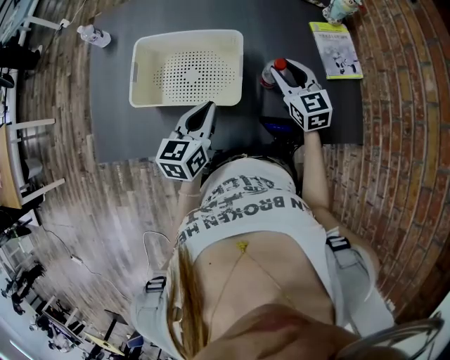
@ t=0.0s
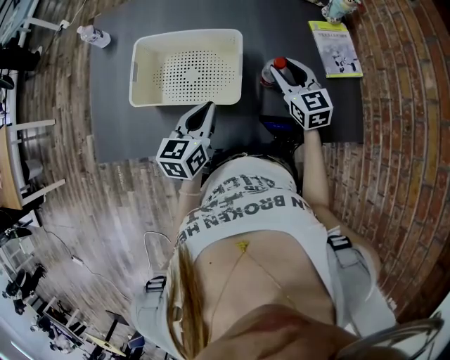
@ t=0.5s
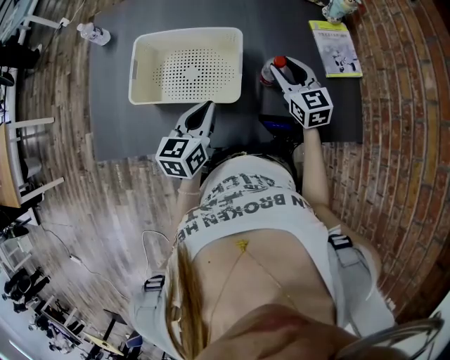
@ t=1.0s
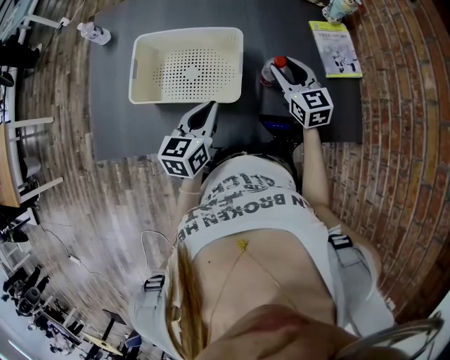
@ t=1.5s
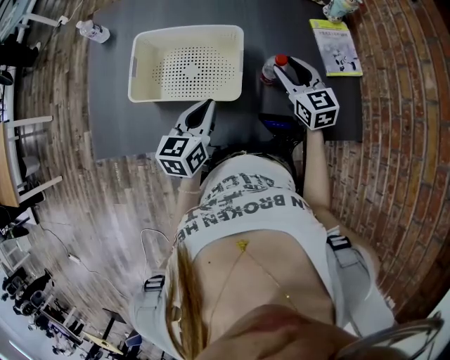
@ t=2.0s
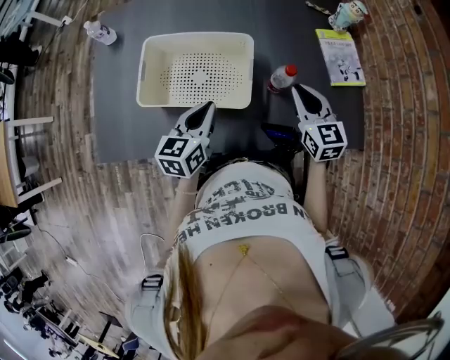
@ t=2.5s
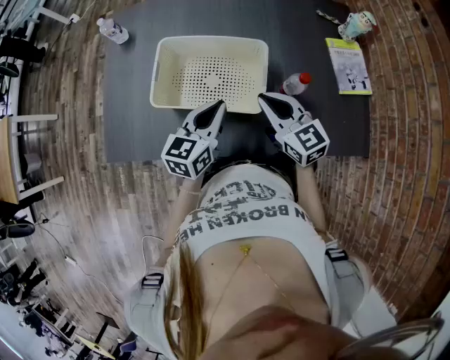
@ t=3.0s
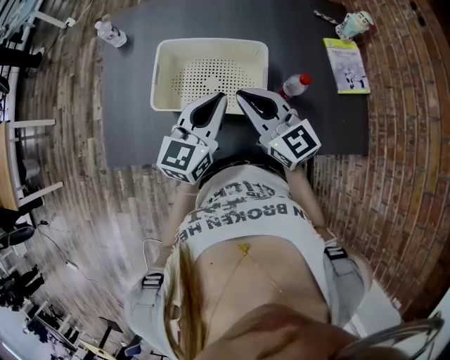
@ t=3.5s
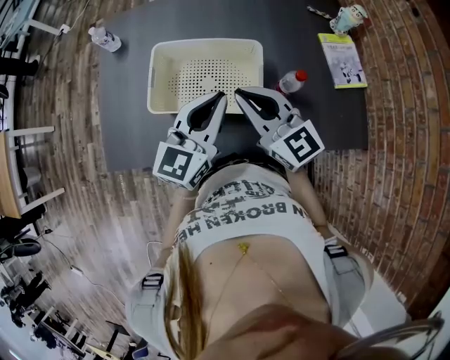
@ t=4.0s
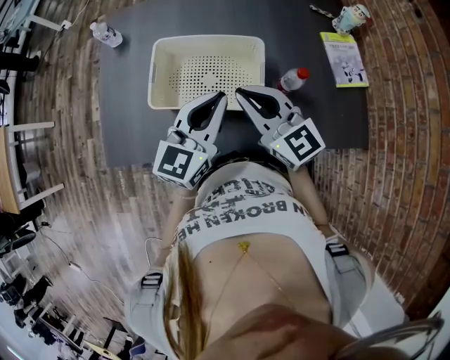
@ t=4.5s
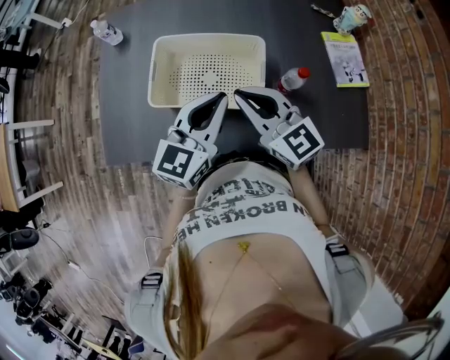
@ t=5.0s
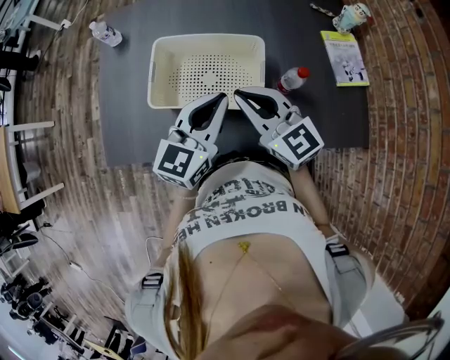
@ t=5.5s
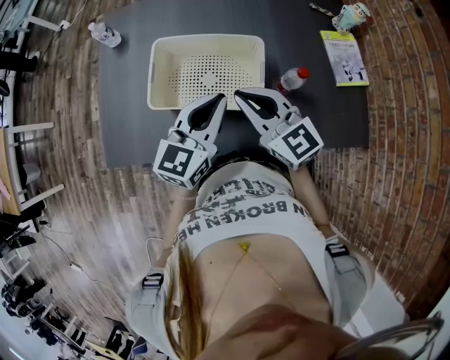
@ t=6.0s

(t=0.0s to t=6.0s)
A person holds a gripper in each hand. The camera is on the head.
t=0.0s - t=2.0s: The grippers move only a little.
t=2.0s - t=4.0s: The left gripper is displaced upward by about 10 cm, and rotates approximately 30 degrees. The right gripper travels to the left and upward by about 25 cm, swivels some 30 degrees, and closes up.
t=4.0s - t=6.0s: There are only small adjustments of the grippers.

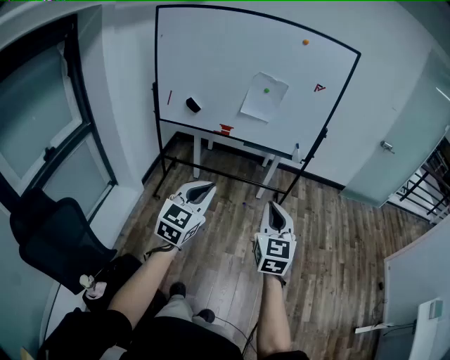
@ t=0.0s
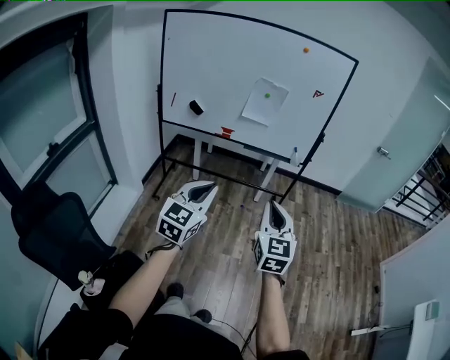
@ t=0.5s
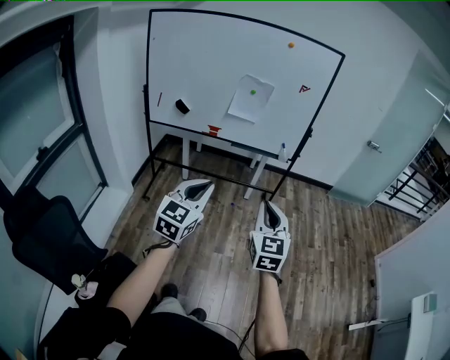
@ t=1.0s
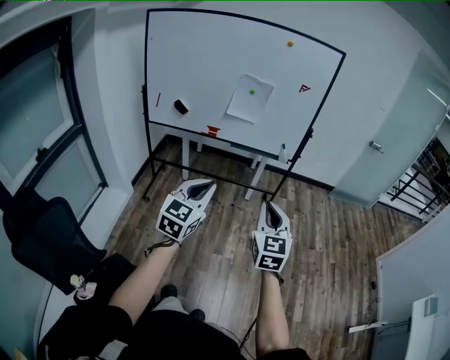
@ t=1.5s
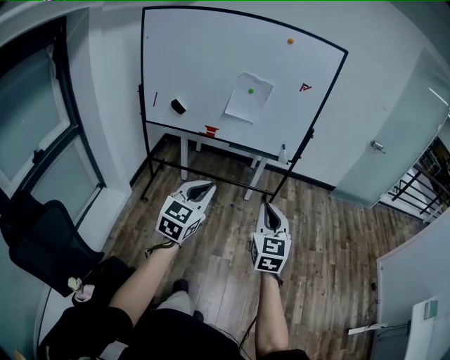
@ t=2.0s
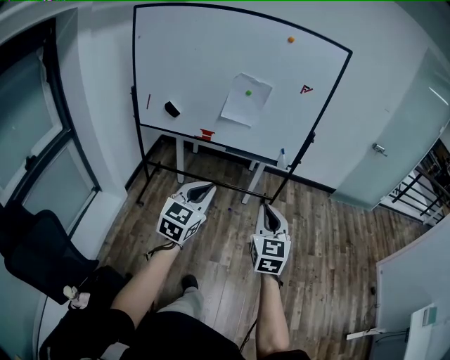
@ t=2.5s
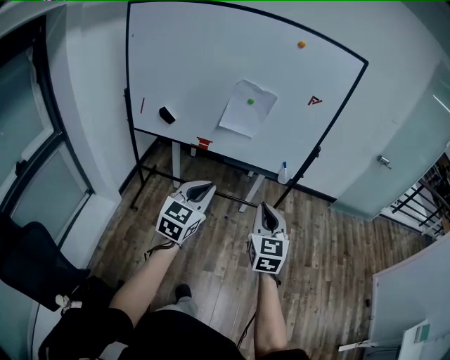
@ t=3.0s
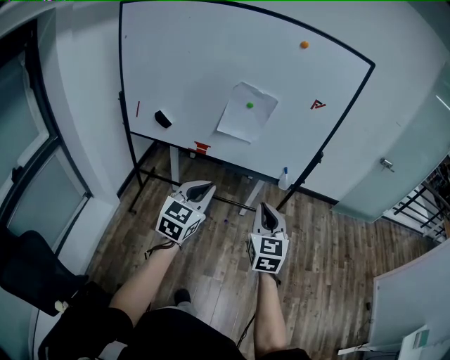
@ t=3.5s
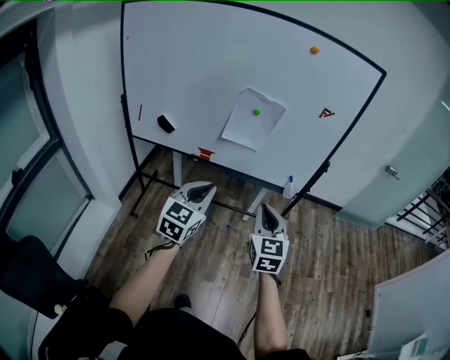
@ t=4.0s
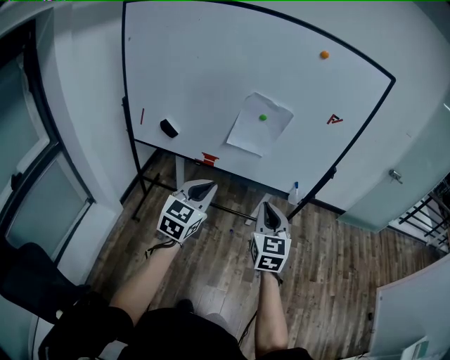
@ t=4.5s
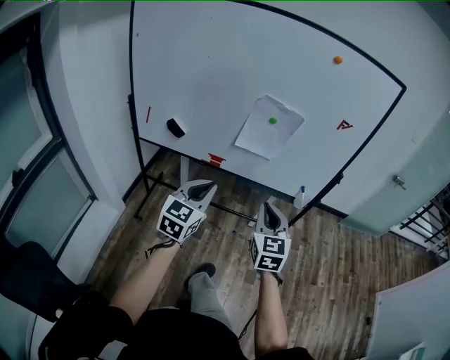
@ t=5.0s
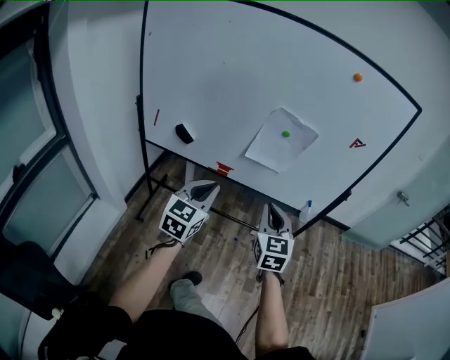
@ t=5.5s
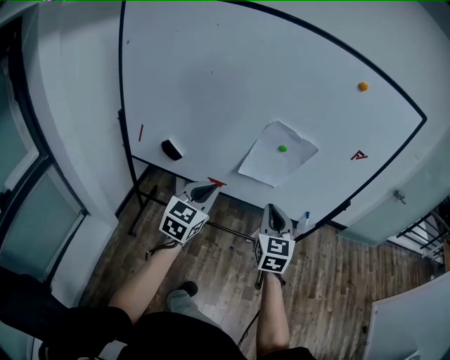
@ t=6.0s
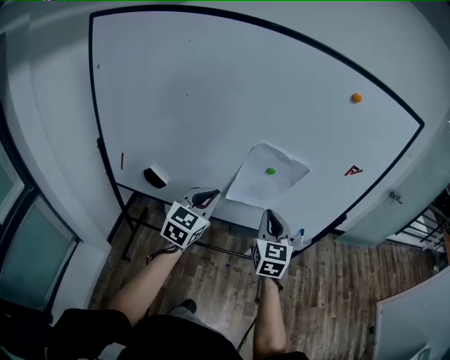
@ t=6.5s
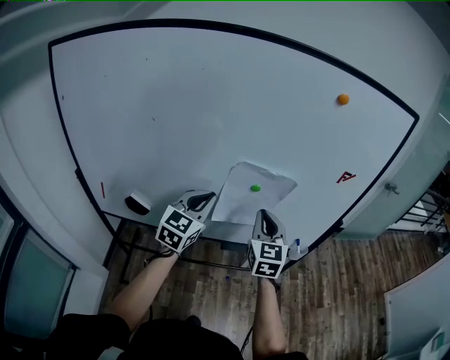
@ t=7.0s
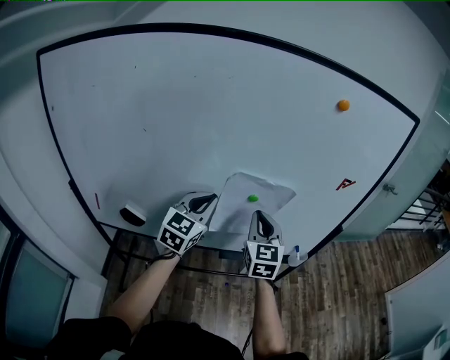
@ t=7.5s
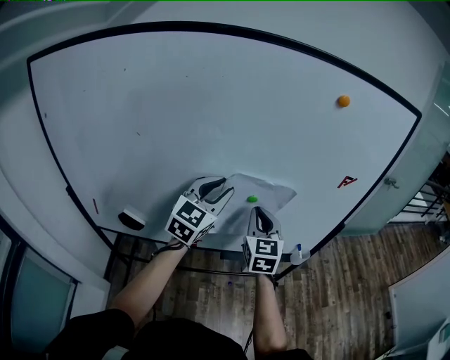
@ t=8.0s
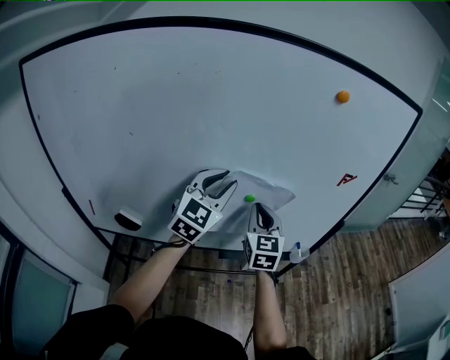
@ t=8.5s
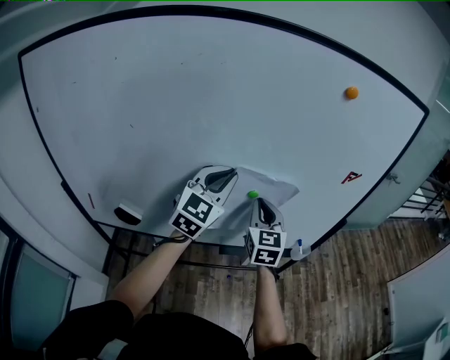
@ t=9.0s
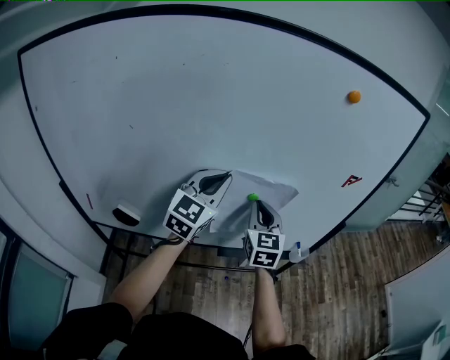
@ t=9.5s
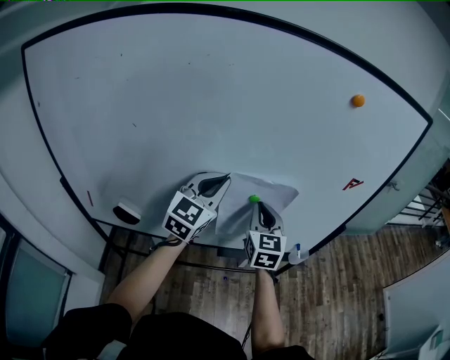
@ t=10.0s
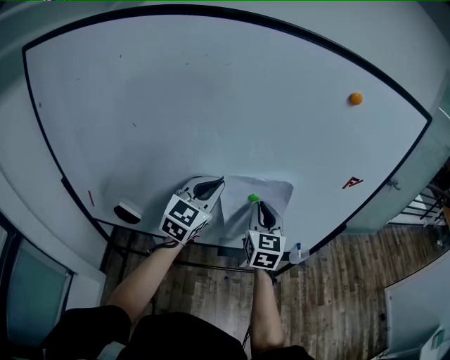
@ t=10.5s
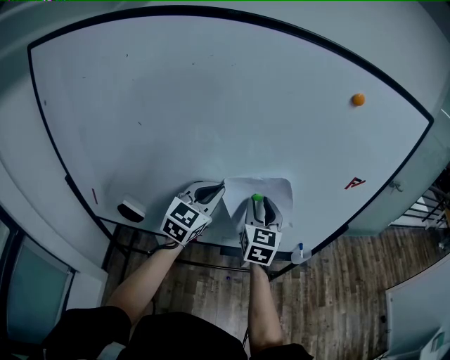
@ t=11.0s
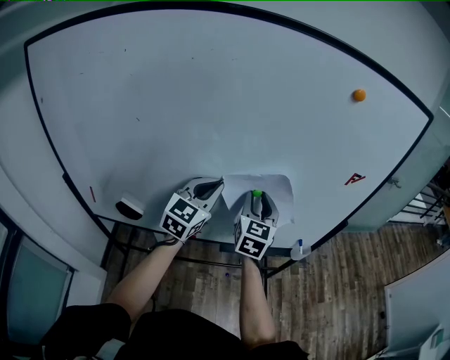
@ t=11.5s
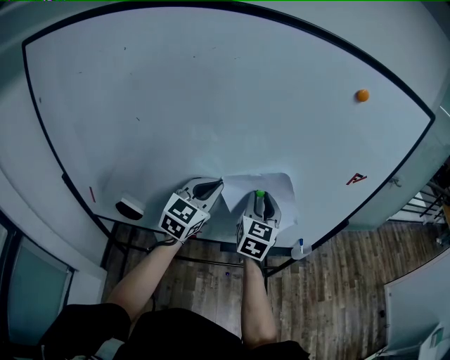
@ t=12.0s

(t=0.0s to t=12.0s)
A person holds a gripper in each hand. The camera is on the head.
t=0.0s - t=2.0s: The two grippers go roughly 5 cm to the right.
t=2.0s - t=4.0s: Both grippers travel together forward, about 30 cm.
t=4.0s - t=6.0s: The two grippers go about 20 cm forward and to the left.
t=6.0s - t=8.0s: The grippers both shift forward by approximately 25 cm. The left gripper changes its angle by roughly 20 degrees.
t=8.0s - t=10.0s: The grippers move only a little.
t=10.0s - t=12.0s: The right gripper opens its fingers. Meanwhile the left gripper travels downward by roughly 5 cm.

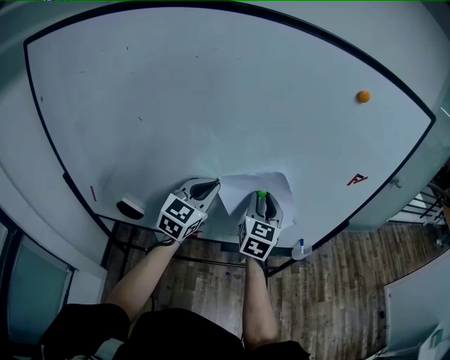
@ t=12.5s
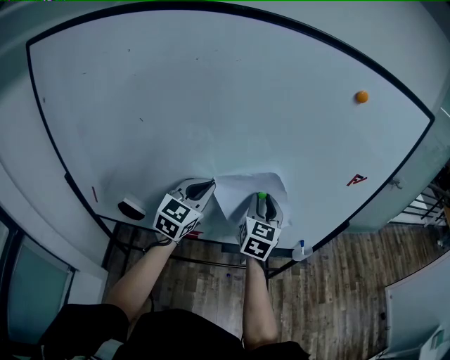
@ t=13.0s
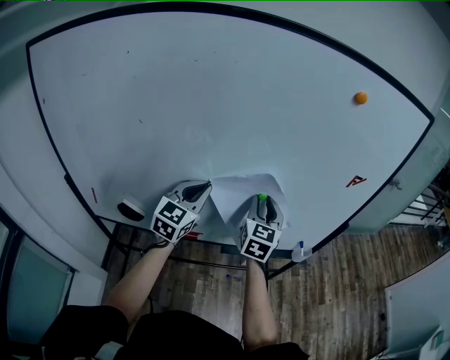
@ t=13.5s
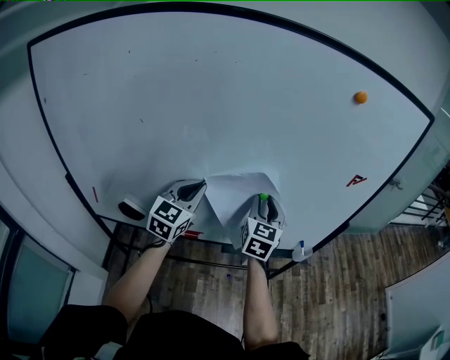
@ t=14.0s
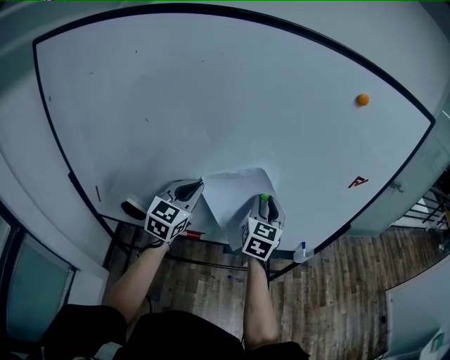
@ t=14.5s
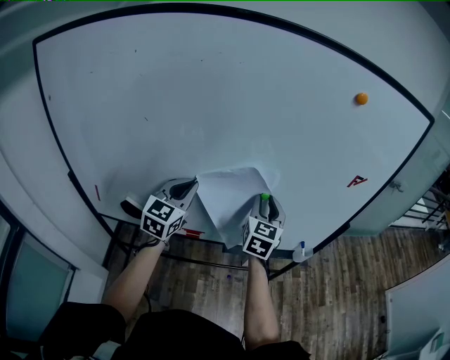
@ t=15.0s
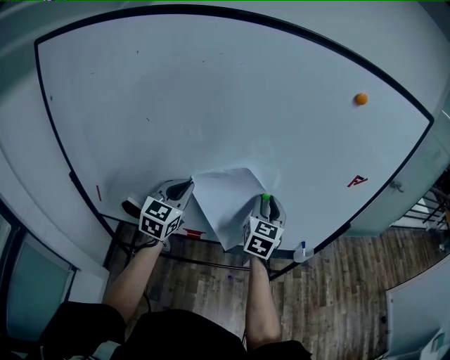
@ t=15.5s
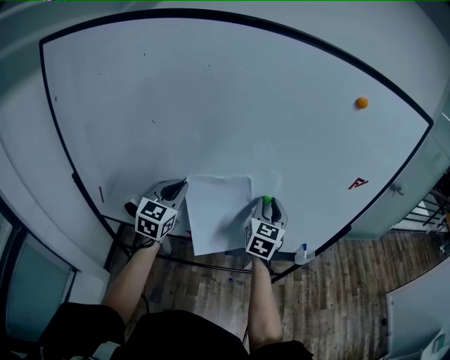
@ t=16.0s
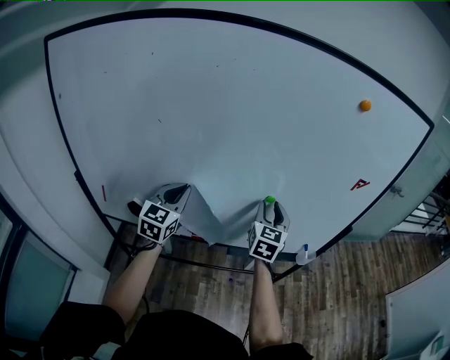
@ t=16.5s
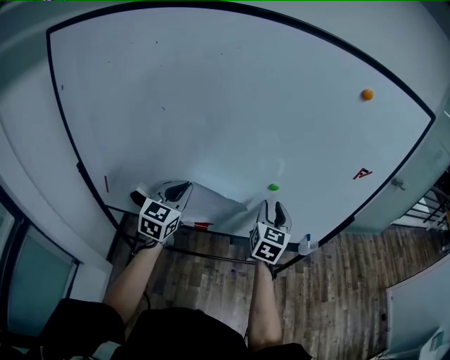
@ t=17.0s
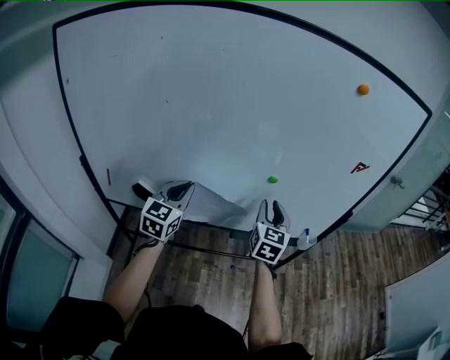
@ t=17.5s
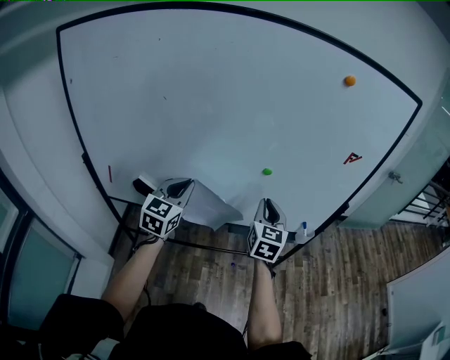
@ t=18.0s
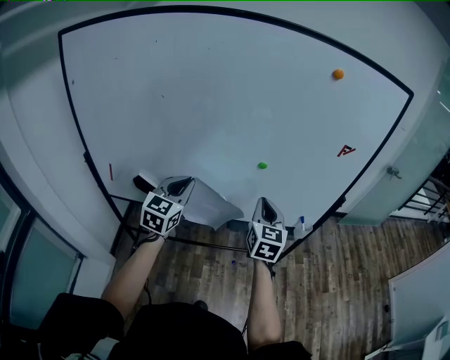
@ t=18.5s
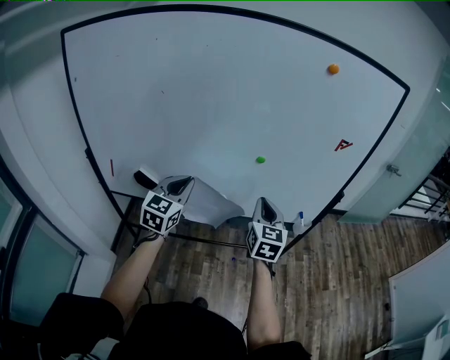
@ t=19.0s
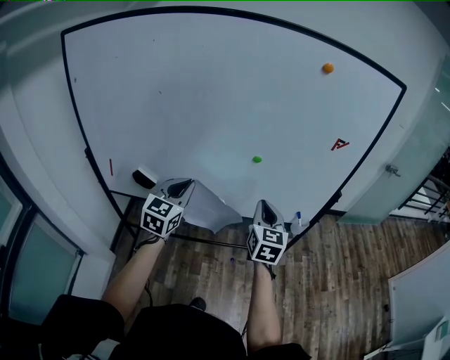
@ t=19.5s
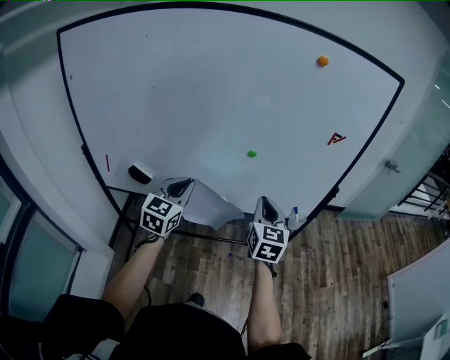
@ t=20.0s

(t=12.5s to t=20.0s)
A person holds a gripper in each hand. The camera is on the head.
t=12.5s - t=14.5s: The left gripper shifts about 5 cm to the left.
t=14.5s - t=16.5s: The left gripper shifts about 5 cm to the left.
t=16.5s - t=18.0s: Both grippers move backward, roughly 10 cm. The right gripper closes.
t=18.0s - t=20.0s: The left gripper heads to the right, covering approximately 5 cm; the right gripper is displaced backward and to the right by about 10 cm.

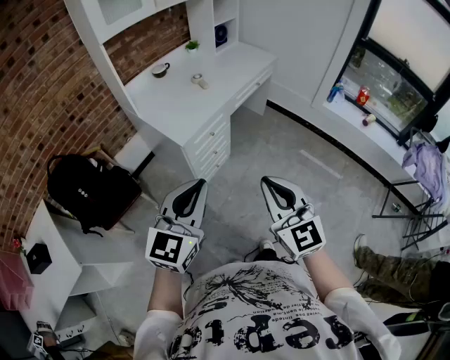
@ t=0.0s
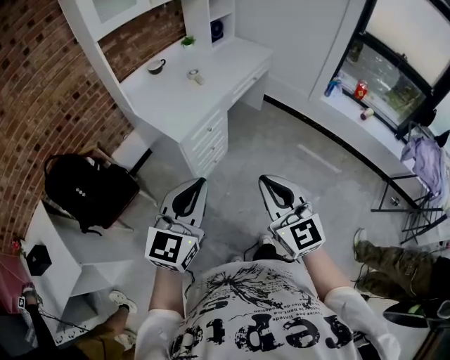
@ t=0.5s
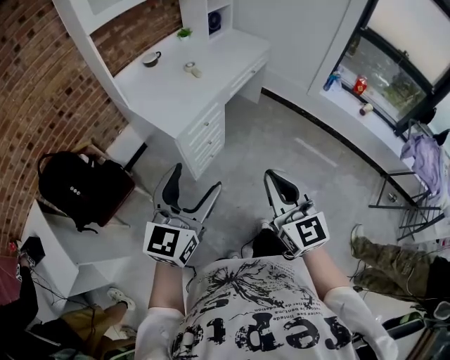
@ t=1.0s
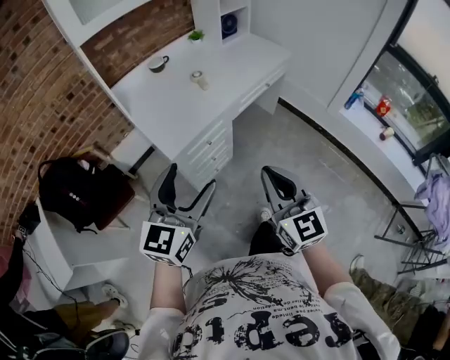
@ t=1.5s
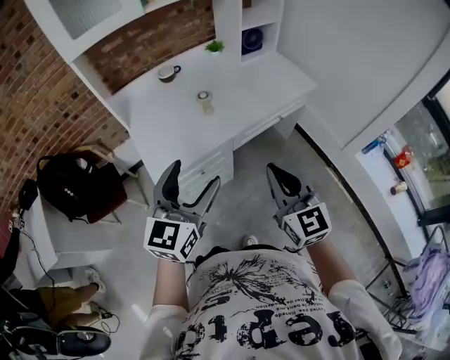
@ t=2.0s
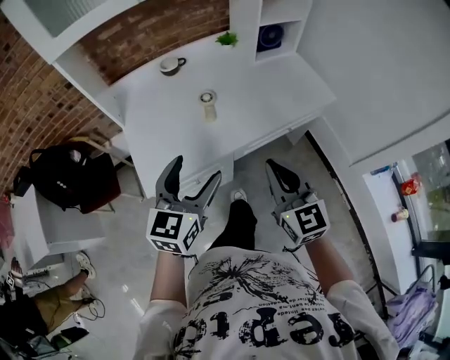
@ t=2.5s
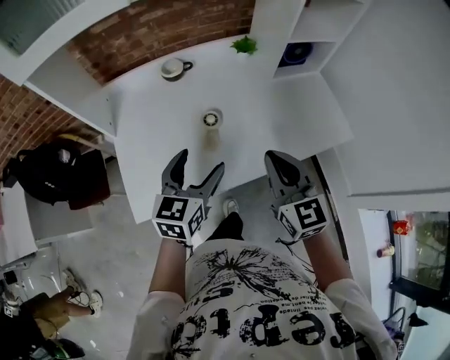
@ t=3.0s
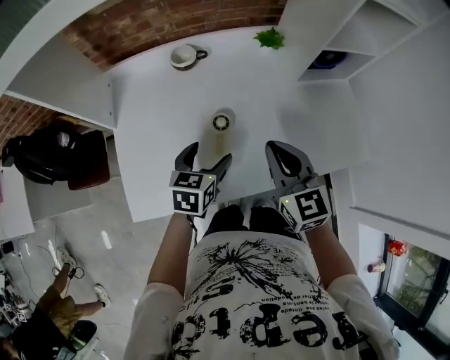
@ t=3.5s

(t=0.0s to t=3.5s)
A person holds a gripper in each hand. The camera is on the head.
t=0.0s - t=2.0s: The pair of grippers is taken forward, approximately 40 cm. The left gripper rotates about 20 degrees, and opens up.
t=2.0s - t=3.5s: The two grippers travel together, forward, some 50 cm. The left gripper heads downward, covering approximately 25 cm, and tips its fingers downward by some 30 degrees. Meanwhile the right gripper changes its angle by some 20 degrees.
